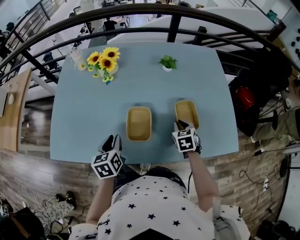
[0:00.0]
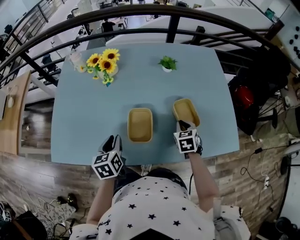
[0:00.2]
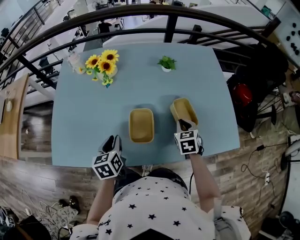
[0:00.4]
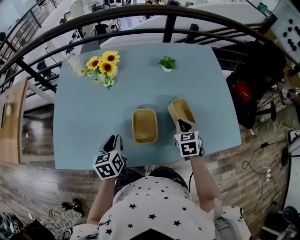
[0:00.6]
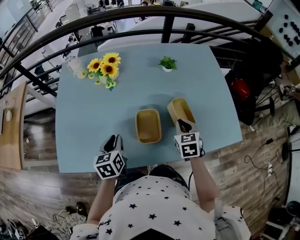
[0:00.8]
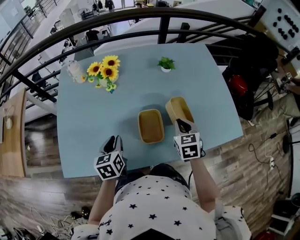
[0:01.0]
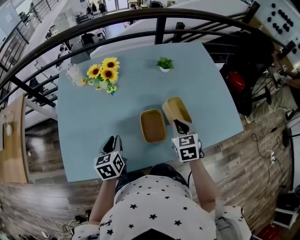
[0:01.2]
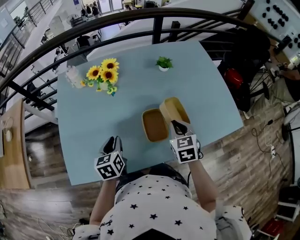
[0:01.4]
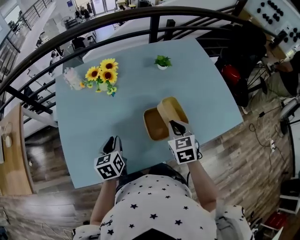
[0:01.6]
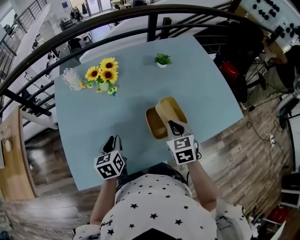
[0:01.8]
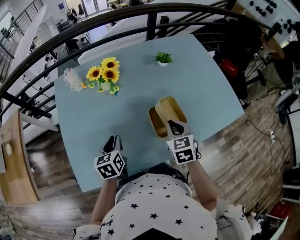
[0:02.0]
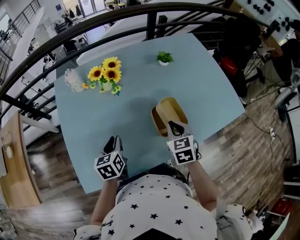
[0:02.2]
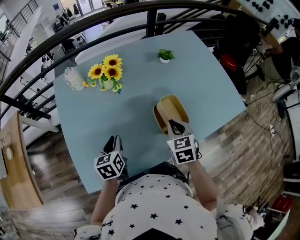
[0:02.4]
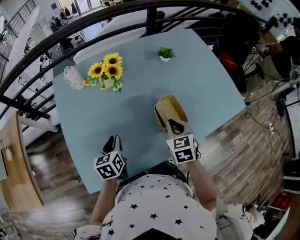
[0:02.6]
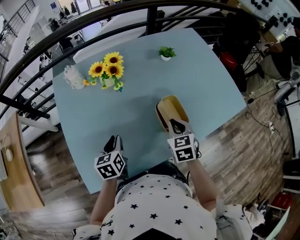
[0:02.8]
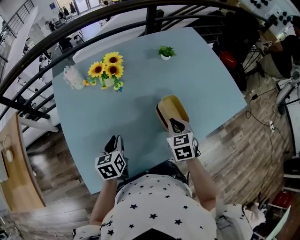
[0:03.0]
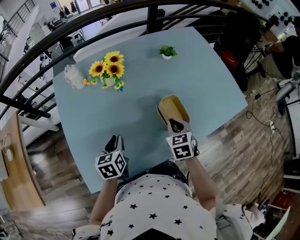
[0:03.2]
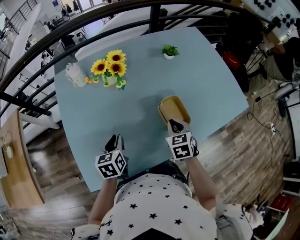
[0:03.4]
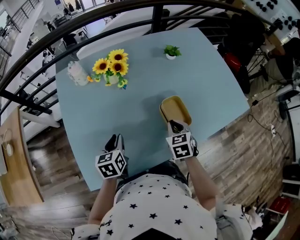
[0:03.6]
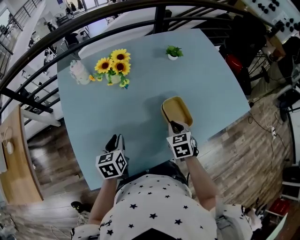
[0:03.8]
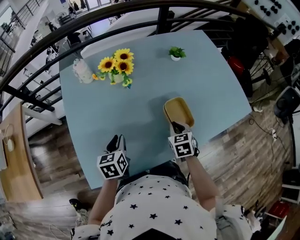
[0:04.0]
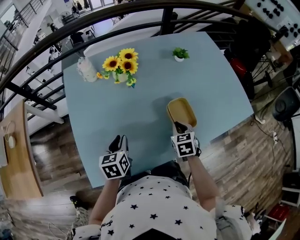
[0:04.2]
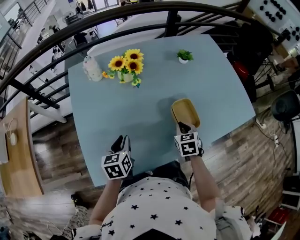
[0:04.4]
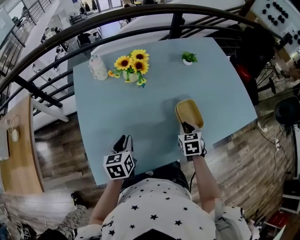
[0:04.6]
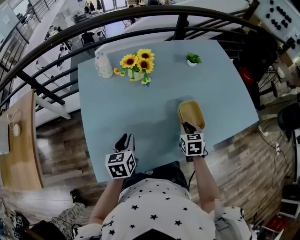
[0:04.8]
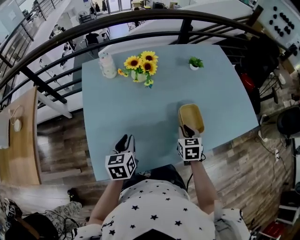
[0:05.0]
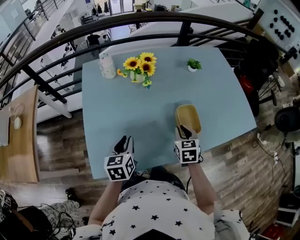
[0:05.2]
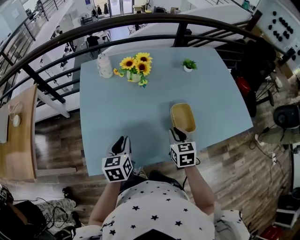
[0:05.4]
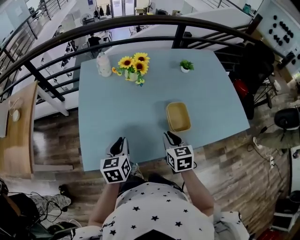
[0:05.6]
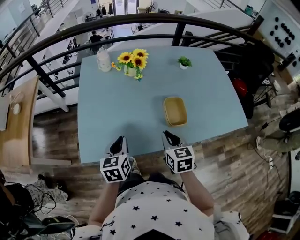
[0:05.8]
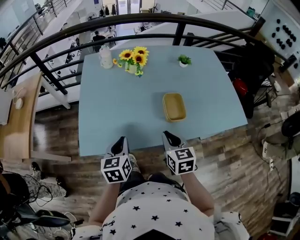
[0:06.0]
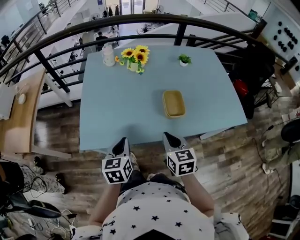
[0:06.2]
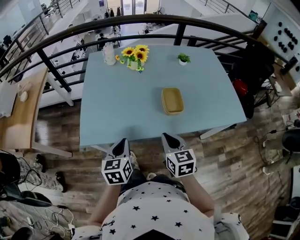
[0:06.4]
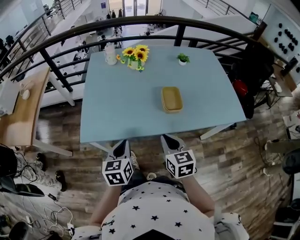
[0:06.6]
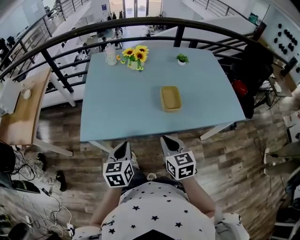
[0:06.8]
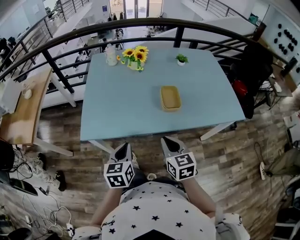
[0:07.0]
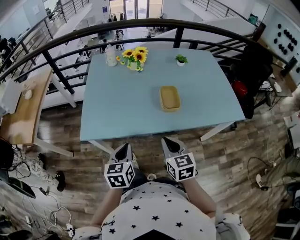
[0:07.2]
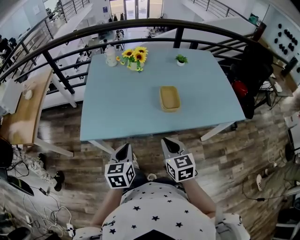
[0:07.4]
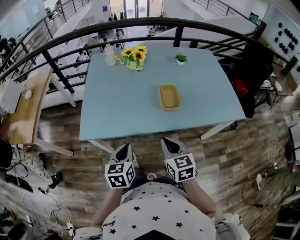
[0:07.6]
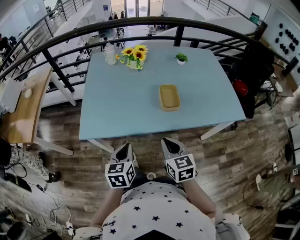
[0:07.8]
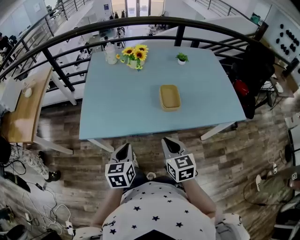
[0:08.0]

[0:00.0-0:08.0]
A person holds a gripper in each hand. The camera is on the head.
0:00.0 to 0:01.6: The right gripper is displaced to the left and upward by about 20 cm. Meanwhile the left gripper shifts approximately 10 cm to the left.
0:01.6 to 0:03.2: Both grippers move to the left, some 5 cm.
0:03.2 to 0:04.8: The left gripper shifts by some 5 cm.
0:04.8 to 0:06.4: The right gripper moves backward and upward, approximately 25 cm, and rotates some 30 degrees. Meanwhile the left gripper travels backward by approximately 20 cm.
0:06.4 to 0:08.0: Both grippers travel together backward, approximately 5 cm.

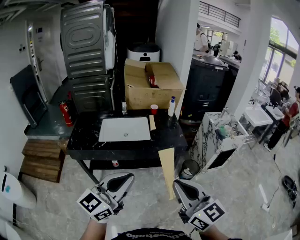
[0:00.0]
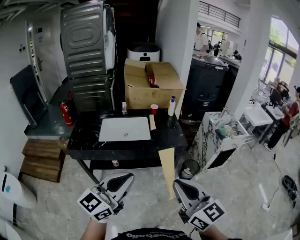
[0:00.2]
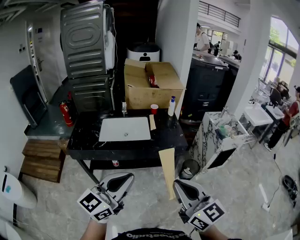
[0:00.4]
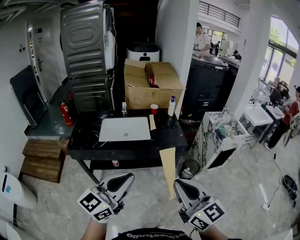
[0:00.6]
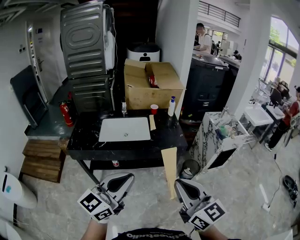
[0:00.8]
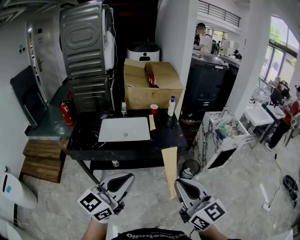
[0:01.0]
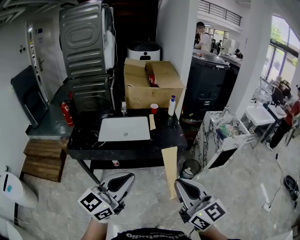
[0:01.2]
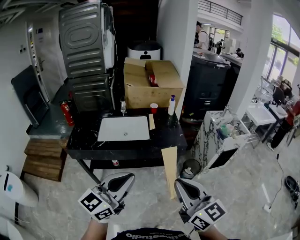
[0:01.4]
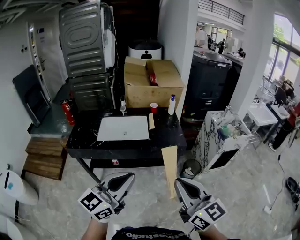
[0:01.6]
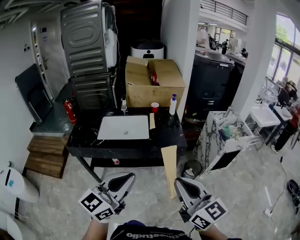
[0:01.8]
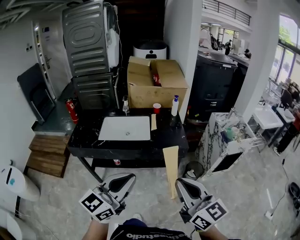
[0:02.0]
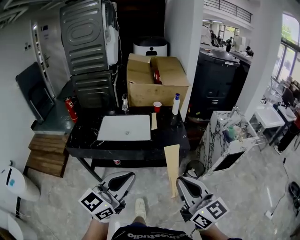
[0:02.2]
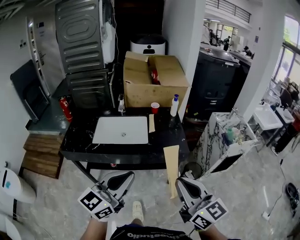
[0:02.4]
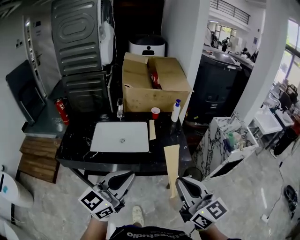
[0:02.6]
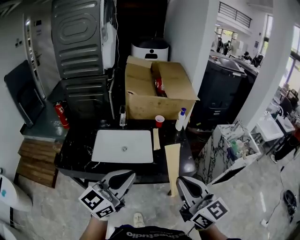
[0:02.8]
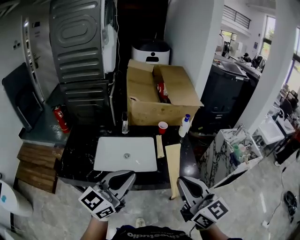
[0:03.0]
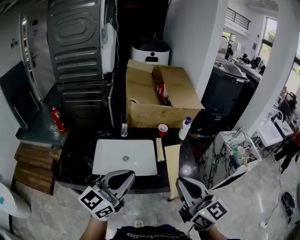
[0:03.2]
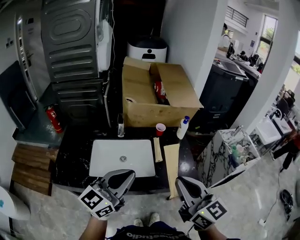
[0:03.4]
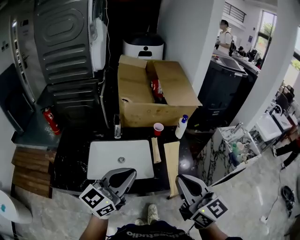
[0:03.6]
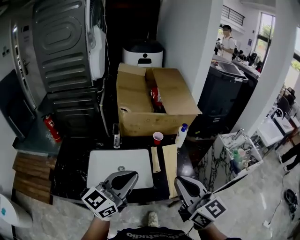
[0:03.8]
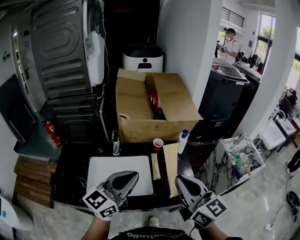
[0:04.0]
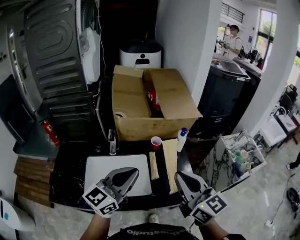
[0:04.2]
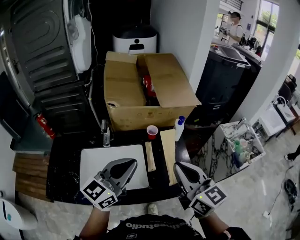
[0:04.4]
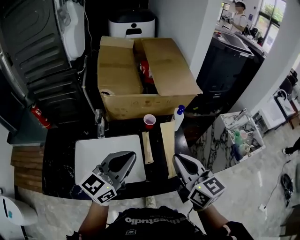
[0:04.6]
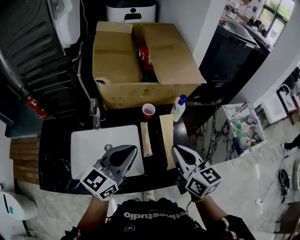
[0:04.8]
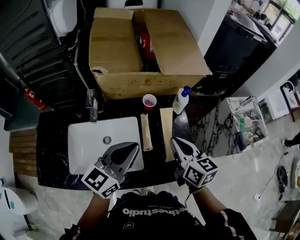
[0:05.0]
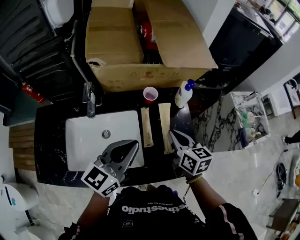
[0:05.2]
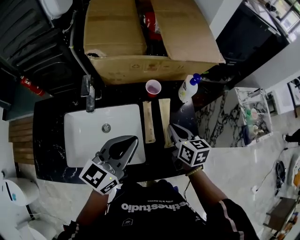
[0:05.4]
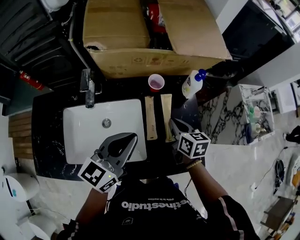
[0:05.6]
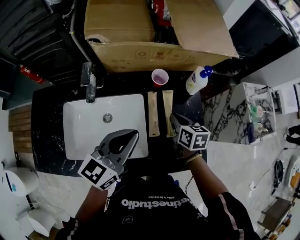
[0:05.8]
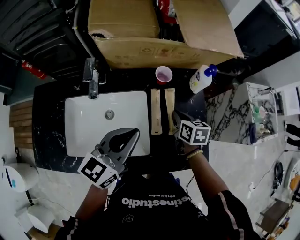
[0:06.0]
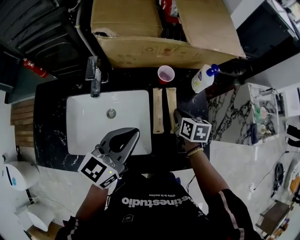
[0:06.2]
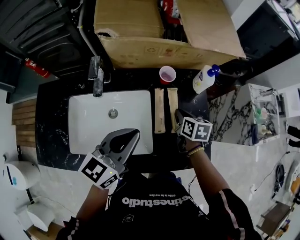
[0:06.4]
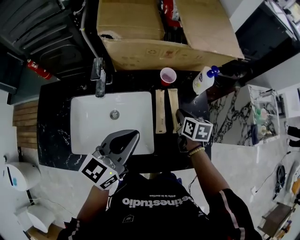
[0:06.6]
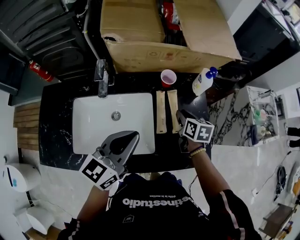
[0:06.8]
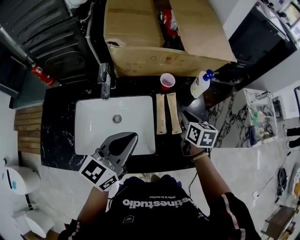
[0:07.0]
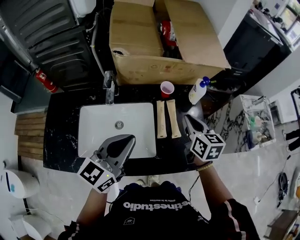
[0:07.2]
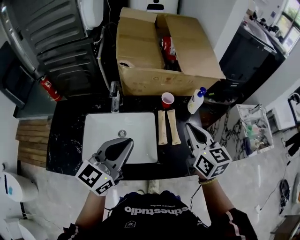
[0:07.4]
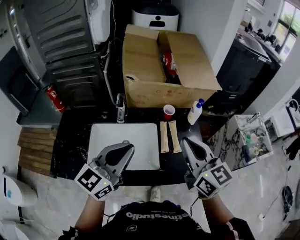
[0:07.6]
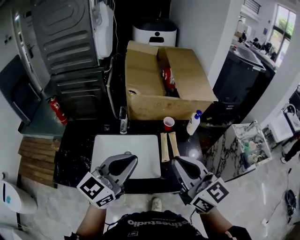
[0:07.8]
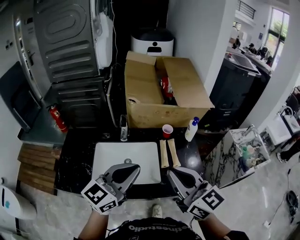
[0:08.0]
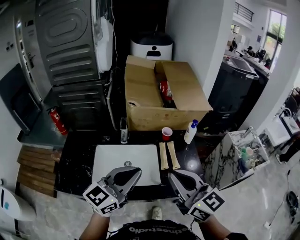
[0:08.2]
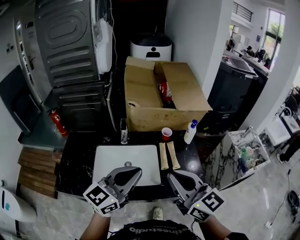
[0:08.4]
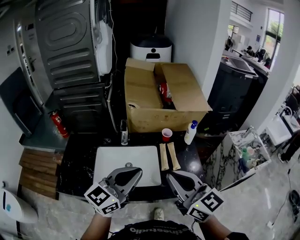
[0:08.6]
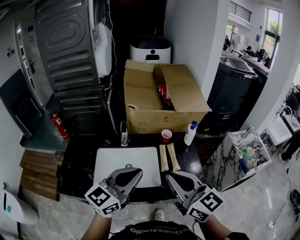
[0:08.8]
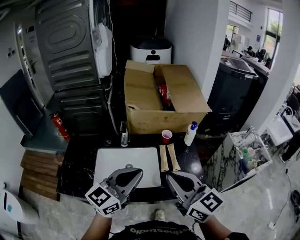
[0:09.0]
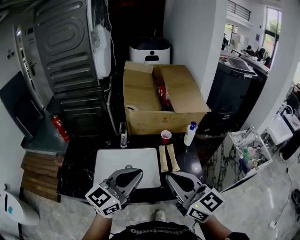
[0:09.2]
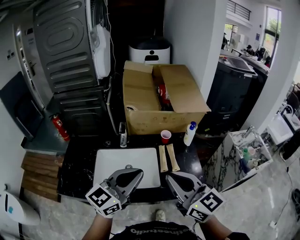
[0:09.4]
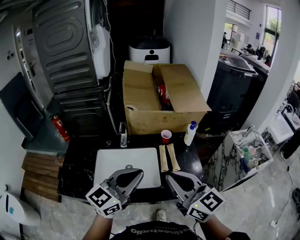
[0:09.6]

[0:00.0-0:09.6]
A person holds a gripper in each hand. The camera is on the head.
0:00.0 to 0:01.6: The left gripper shifts by roughly 5 cm, while the right gripper shifts about 5 cm to the right.
0:01.6 to 0:03.2: The grippers both shift forward by roughly 35 cm.
0:03.2 to 0:04.8: The right gripper goes approximately 30 cm forward and downward; the left gripper moves forward, some 25 cm.
0:04.8 to 0:06.4: The right gripper is displaced downward and forward by approximately 30 cm, and tips its fingers downward by approximately 30 degrees; the left gripper goes about 10 cm downward.
0:06.4 to 0:08.0: The right gripper goes some 50 cm upward and backward, and tips its fingers upward by about 40 degrees; the left gripper goes some 20 cm upward and backward.
0:08.0 to 0:09.6: The grippers make only small movements.

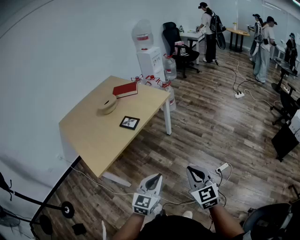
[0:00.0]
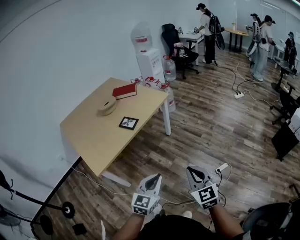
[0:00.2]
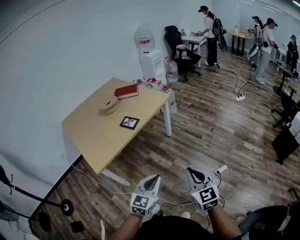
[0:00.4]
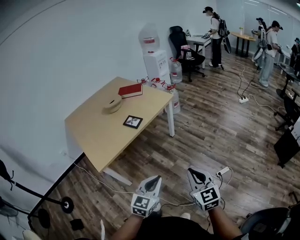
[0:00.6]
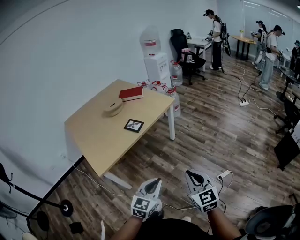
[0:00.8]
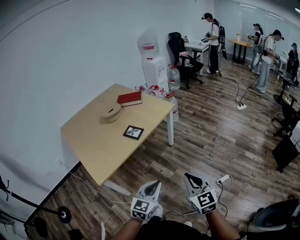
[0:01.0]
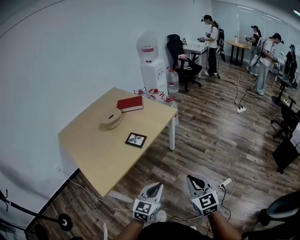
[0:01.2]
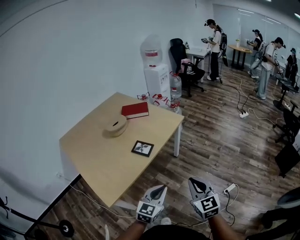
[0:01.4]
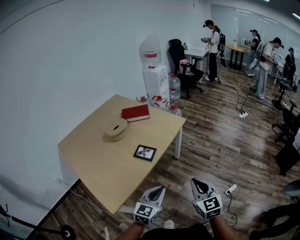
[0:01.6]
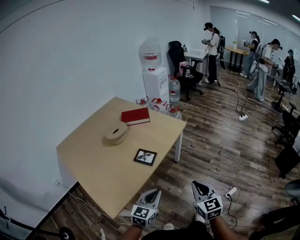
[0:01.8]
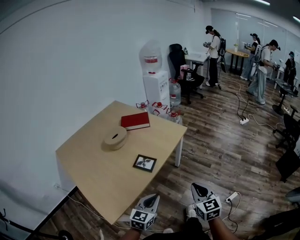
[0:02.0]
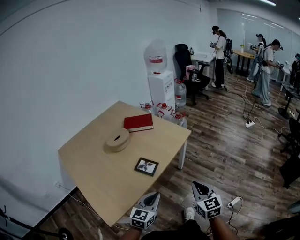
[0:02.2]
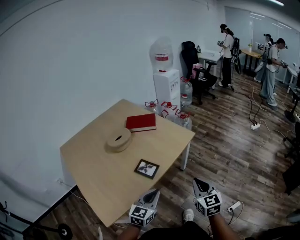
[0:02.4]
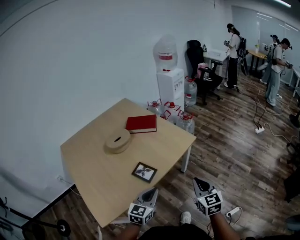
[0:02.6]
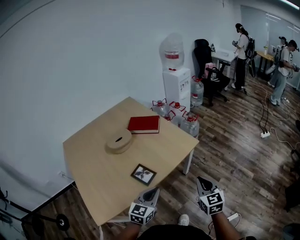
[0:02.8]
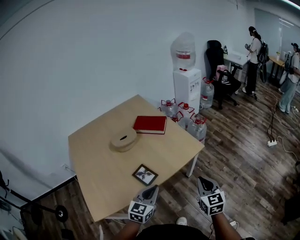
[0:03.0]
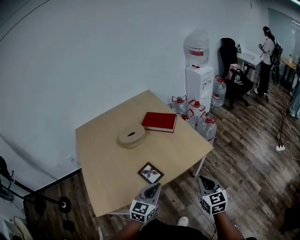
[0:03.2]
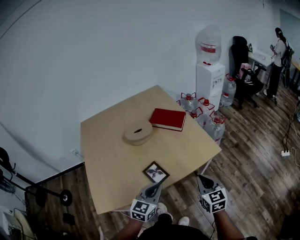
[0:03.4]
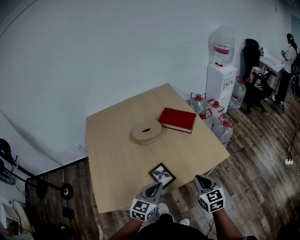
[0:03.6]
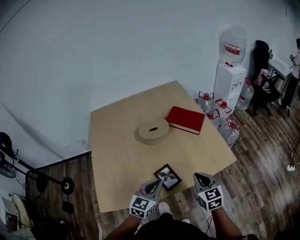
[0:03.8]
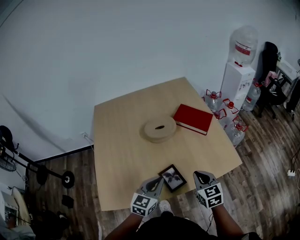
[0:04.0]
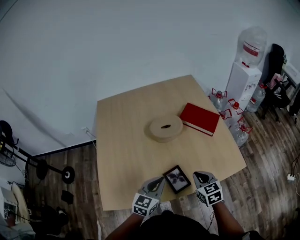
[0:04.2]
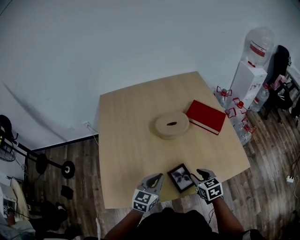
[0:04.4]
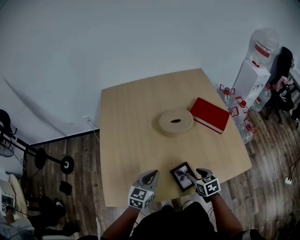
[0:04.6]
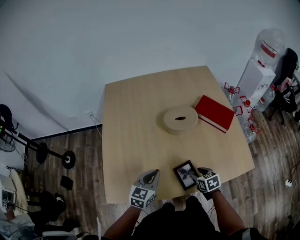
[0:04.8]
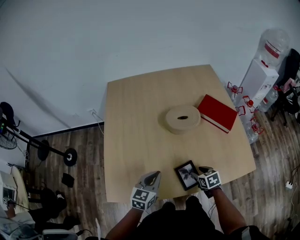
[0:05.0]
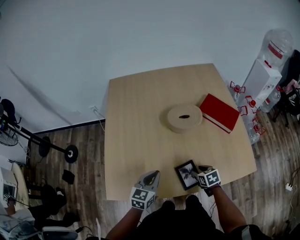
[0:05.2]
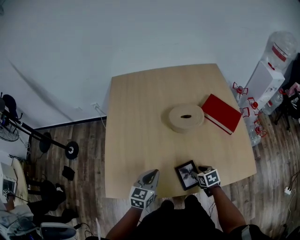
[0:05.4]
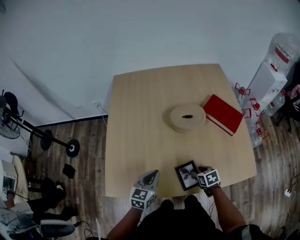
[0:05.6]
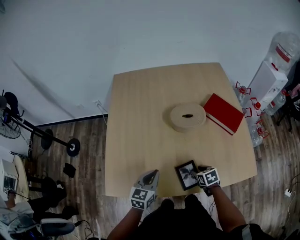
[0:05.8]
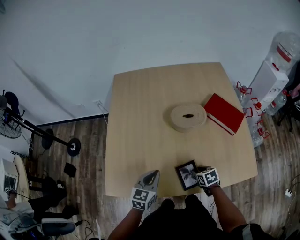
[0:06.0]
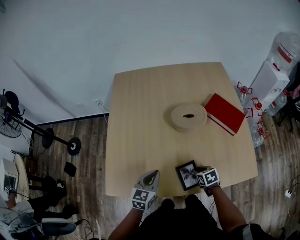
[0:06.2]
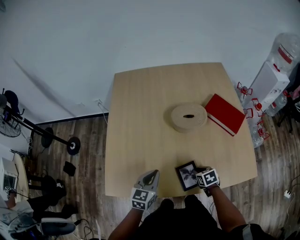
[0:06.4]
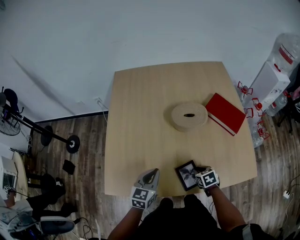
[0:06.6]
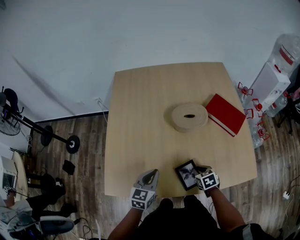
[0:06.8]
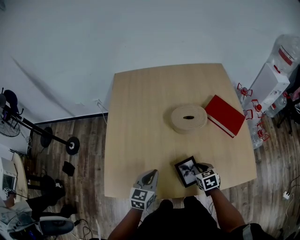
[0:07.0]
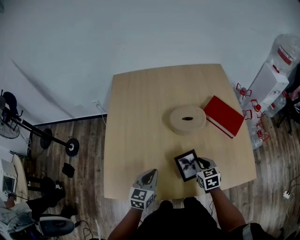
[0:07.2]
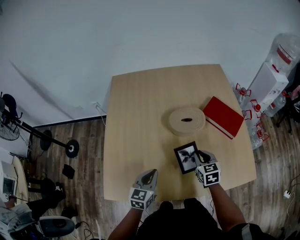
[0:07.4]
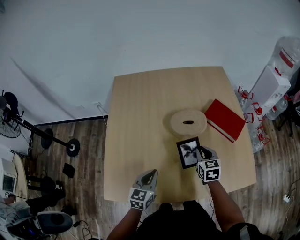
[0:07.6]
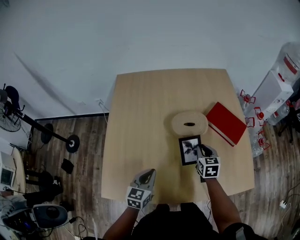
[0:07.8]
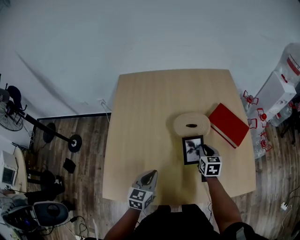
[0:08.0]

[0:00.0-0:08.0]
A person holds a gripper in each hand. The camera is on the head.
0:00.0 to 0:01.6: The two grippers go some 25 cm forward and to the left.
0:01.6 to 0:03.2: The grippers both shift forward by some 30 cm. The right gripper turns by some 20 degrees; the left gripper changes its angle by some 30 degrees.
0:03.2 to 0:04.8: The left gripper shifts by approximately 30 cm, and swivels some 30 degrees, while the right gripper shifts by approximately 40 cm, points its fingers some 30 degrees further downward, and opens.
0:04.8 to 0:06.4: The right gripper closes up.
0:06.4 to 0:08.0: The right gripper shifts roughly 20 cm forward and upward, and swivels some 30 degrees.
